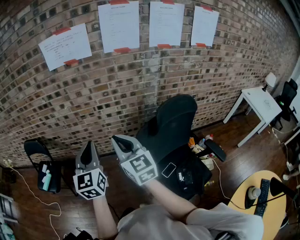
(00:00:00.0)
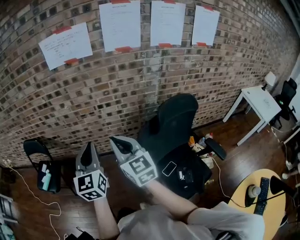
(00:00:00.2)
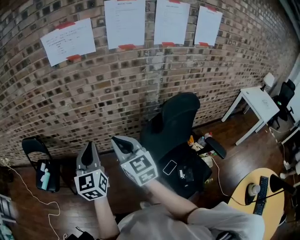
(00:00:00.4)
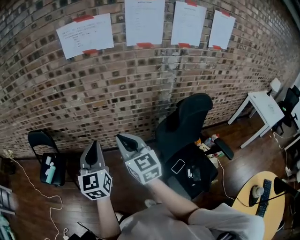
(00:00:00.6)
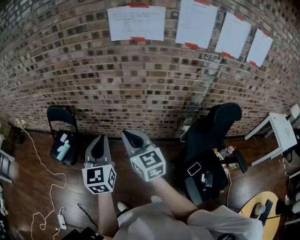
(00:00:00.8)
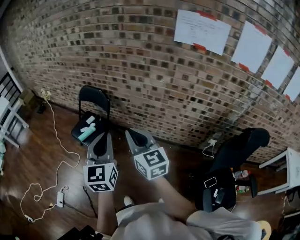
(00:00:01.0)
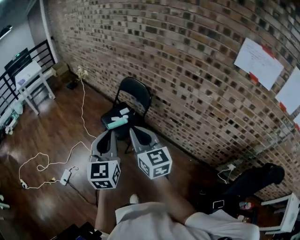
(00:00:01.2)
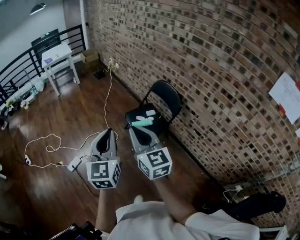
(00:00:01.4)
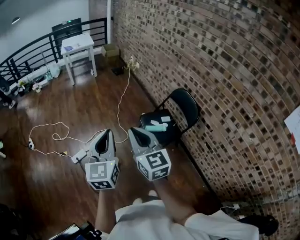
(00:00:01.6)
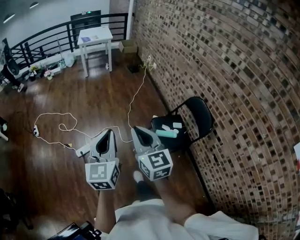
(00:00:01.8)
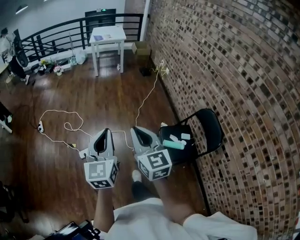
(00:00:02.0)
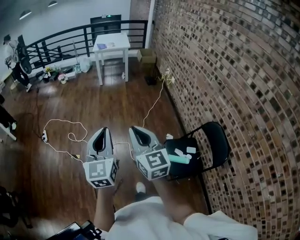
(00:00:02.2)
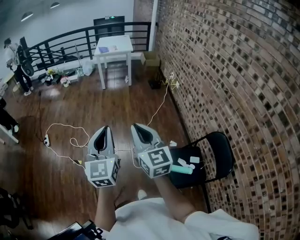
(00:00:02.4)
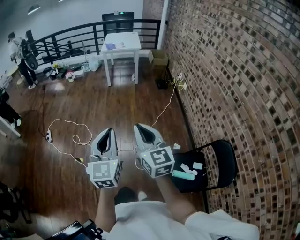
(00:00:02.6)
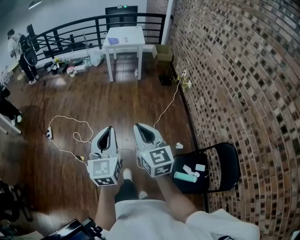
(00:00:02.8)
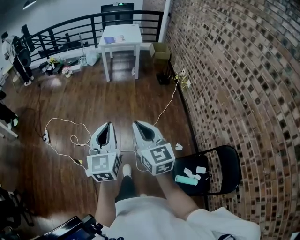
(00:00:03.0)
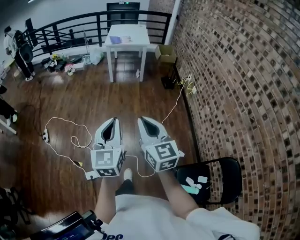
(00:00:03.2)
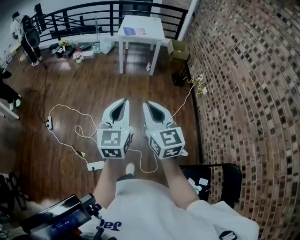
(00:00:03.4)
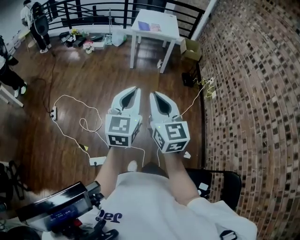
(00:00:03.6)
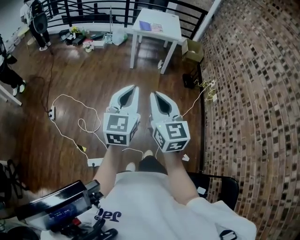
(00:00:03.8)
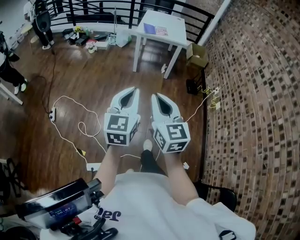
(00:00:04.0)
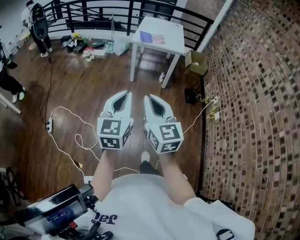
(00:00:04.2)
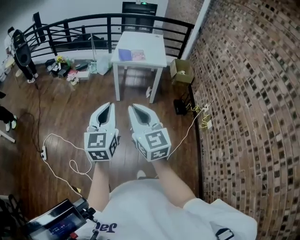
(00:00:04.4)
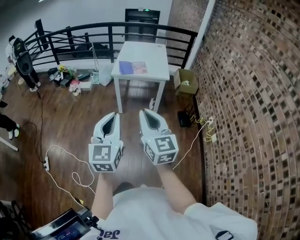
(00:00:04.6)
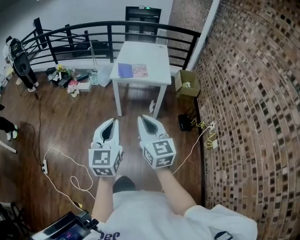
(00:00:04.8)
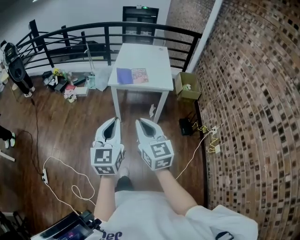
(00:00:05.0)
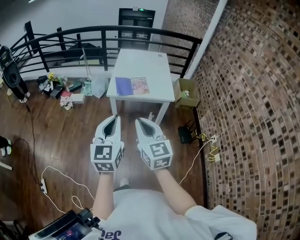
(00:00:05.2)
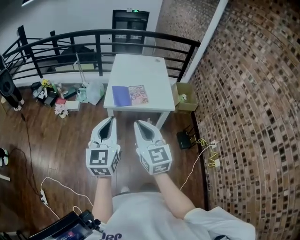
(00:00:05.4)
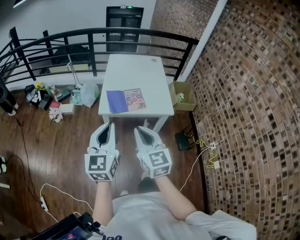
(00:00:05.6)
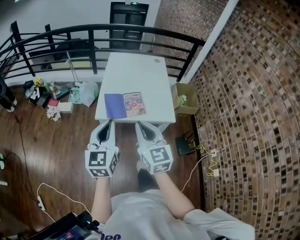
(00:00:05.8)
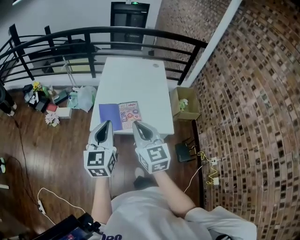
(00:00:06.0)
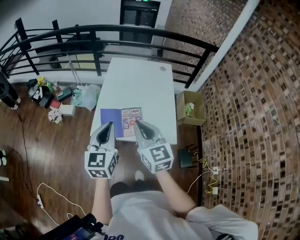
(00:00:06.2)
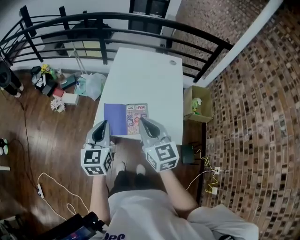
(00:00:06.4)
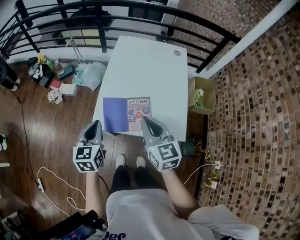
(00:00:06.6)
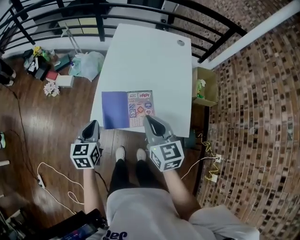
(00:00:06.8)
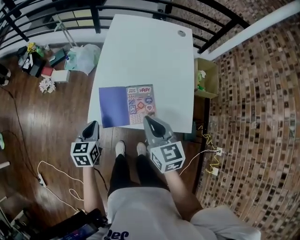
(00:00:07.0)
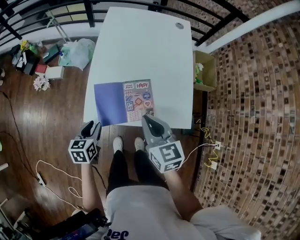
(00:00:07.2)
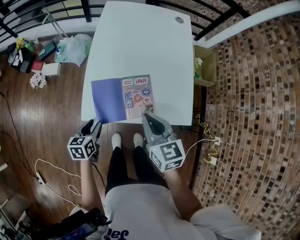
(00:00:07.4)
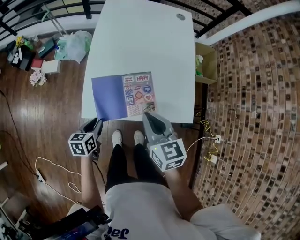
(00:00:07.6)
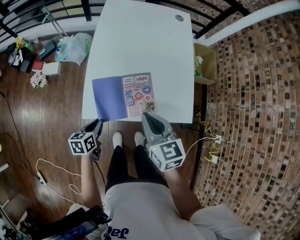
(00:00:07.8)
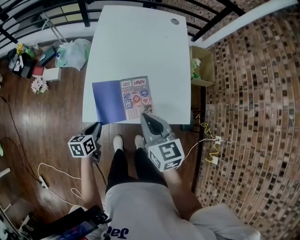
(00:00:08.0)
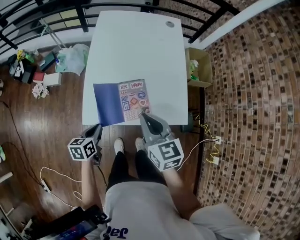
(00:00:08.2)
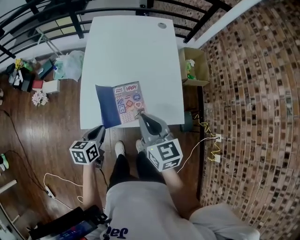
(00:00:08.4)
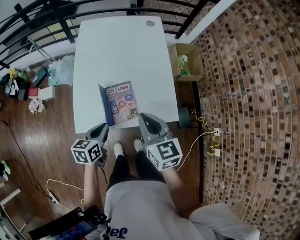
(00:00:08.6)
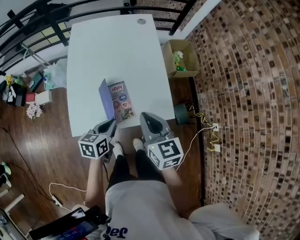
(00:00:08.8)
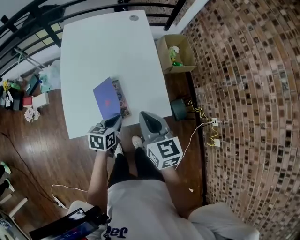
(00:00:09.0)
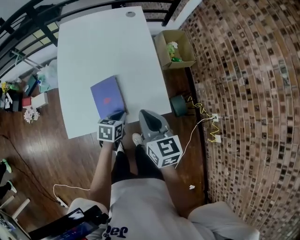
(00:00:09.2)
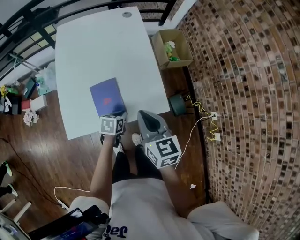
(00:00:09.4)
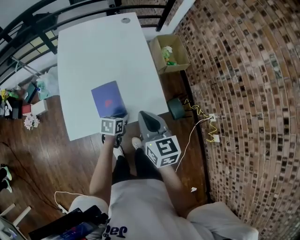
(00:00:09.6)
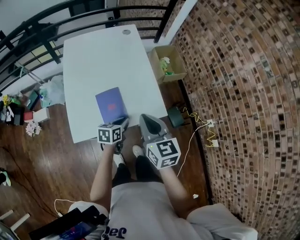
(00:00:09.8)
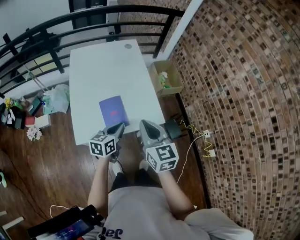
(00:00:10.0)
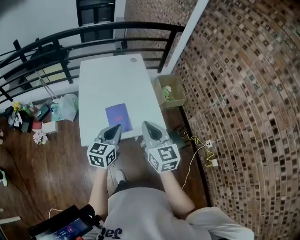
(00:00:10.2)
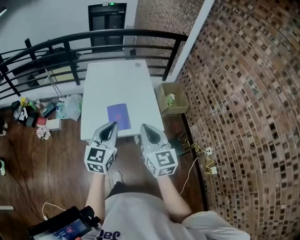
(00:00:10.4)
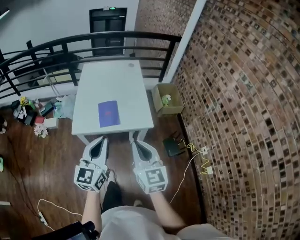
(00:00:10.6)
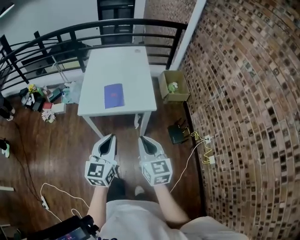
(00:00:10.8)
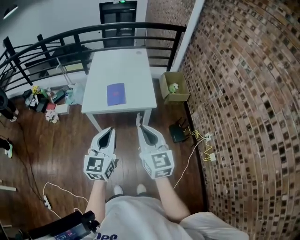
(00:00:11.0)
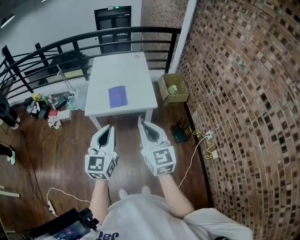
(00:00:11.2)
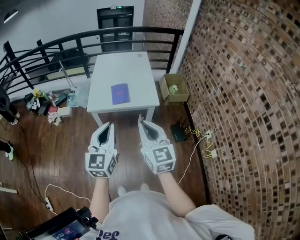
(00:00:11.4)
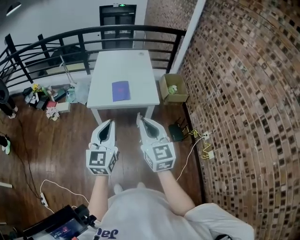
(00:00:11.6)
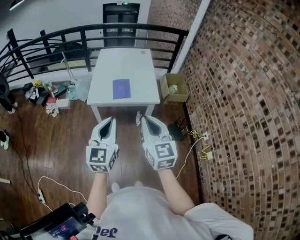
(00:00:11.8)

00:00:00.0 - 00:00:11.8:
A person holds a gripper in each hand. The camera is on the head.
00:00:00.0 - 00:00:01.4: The two grippers travel together, approximately 80 cm. The left gripper turns by some 50 degrees. The right gripper swivels some 60 degrees.
00:00:01.4 - 00:00:03.0: Both grippers are carried roughly 60 cm. The right gripper rotates about 30 degrees, while the left gripper turns by roughly 30 degrees.
00:00:03.0 - 00:00:04.4: The two grippers travel together, forward, some 60 cm.
00:00:04.4 - 00:00:06.0: The two grippers travel together, forward, approximately 70 cm.
00:00:06.0 - 00:00:07.4: The right gripper is displaced downward and forward by about 20 cm, and changes its angle by some 20 degrees; the left gripper heads downward, covering approximately 35 cm, angles its fingers downward, by approximately 40 degrees, and opens its fingers.
00:00:07.4 - 00:00:08.8: The right gripper goes approximately 10 cm to the right. Meanwhile the left gripper moves to the right and upward, some 20 cm, swivels some 20 degrees, and closes up.
00:00:08.8 - 00:00:10.4: The left gripper shifts roughly 25 cm upward and backward, and changes its angle by about 40 degrees. Meanwhile the right gripper is displaced backward and upward by some 20 cm, and rotates approximately 20 degrees.
00:00:10.4 - 00:00:11.8: Both grippers move backward, some 25 cm.

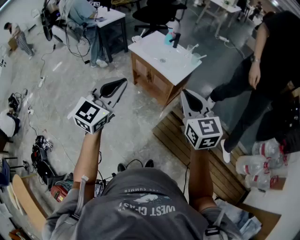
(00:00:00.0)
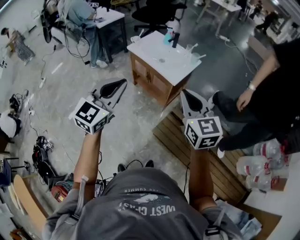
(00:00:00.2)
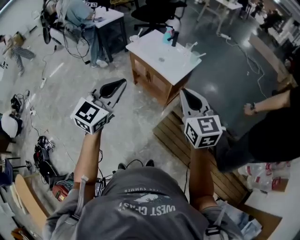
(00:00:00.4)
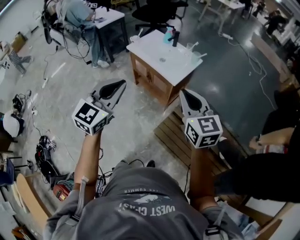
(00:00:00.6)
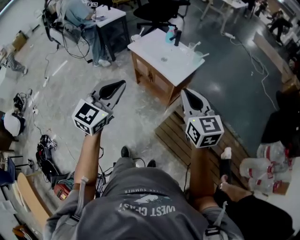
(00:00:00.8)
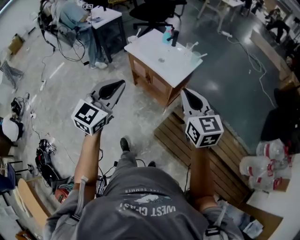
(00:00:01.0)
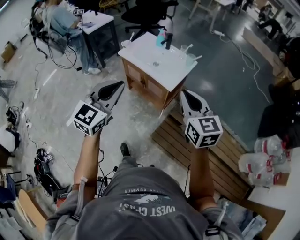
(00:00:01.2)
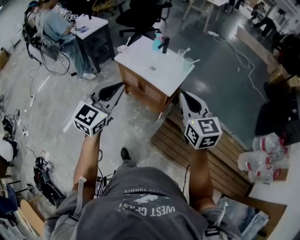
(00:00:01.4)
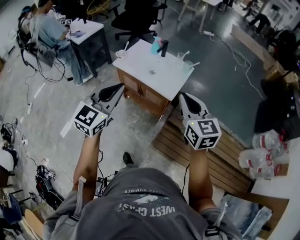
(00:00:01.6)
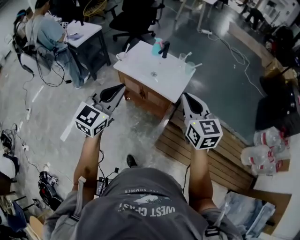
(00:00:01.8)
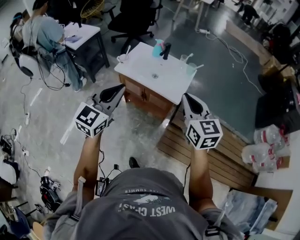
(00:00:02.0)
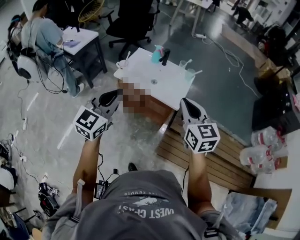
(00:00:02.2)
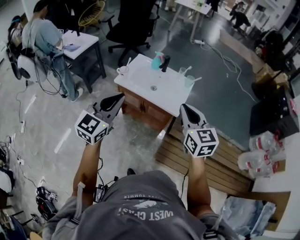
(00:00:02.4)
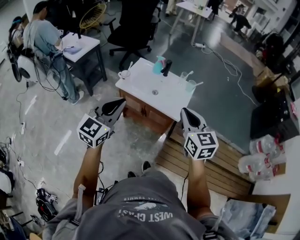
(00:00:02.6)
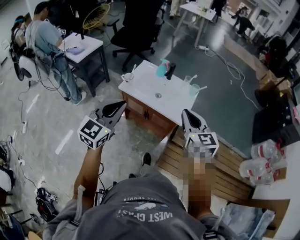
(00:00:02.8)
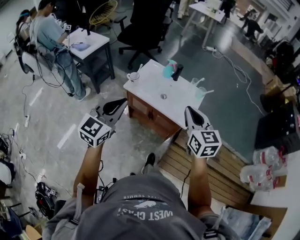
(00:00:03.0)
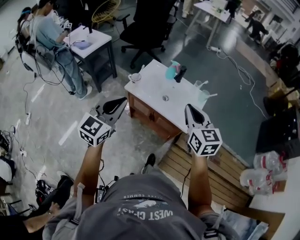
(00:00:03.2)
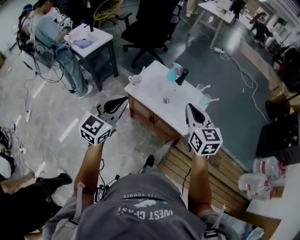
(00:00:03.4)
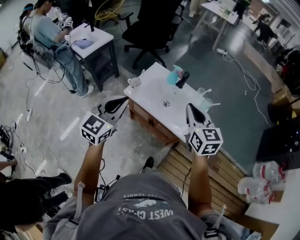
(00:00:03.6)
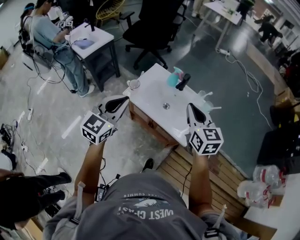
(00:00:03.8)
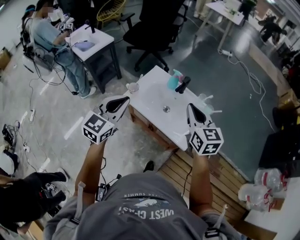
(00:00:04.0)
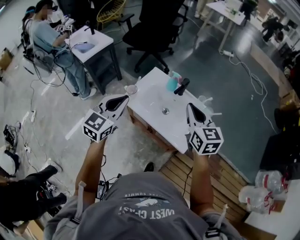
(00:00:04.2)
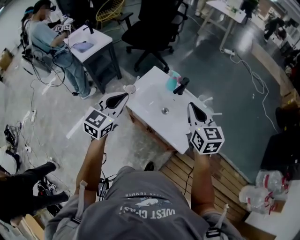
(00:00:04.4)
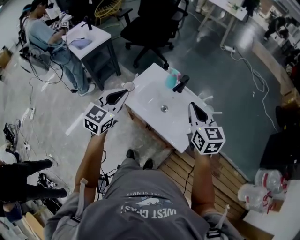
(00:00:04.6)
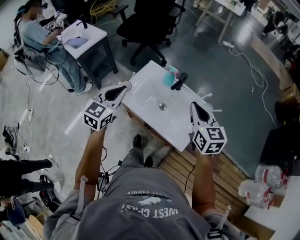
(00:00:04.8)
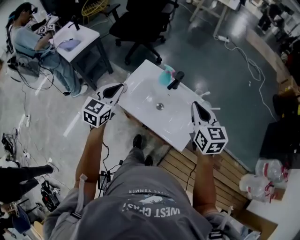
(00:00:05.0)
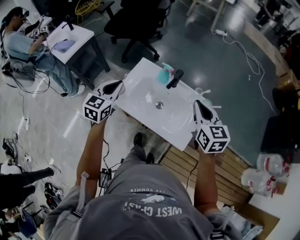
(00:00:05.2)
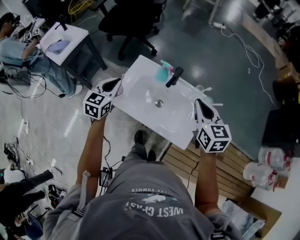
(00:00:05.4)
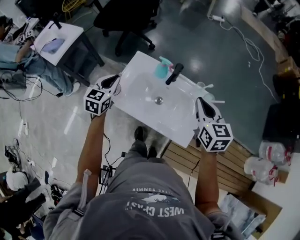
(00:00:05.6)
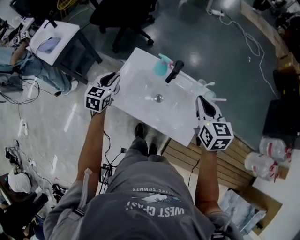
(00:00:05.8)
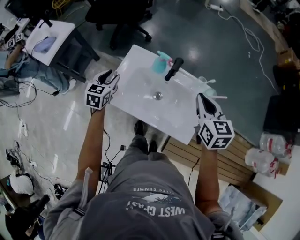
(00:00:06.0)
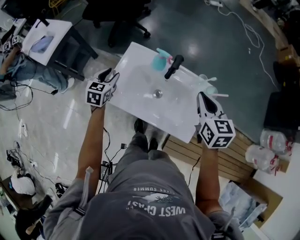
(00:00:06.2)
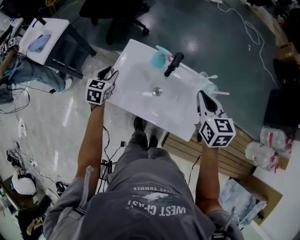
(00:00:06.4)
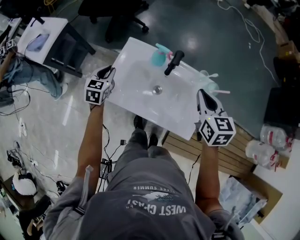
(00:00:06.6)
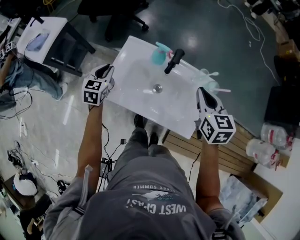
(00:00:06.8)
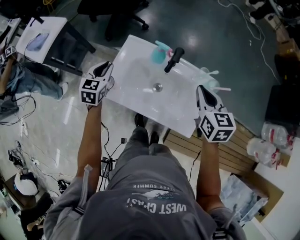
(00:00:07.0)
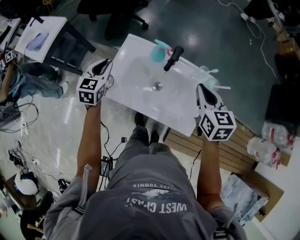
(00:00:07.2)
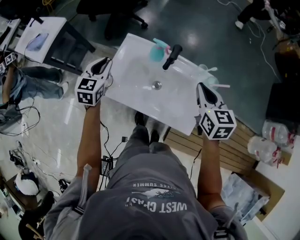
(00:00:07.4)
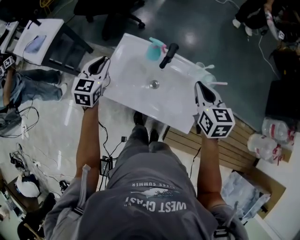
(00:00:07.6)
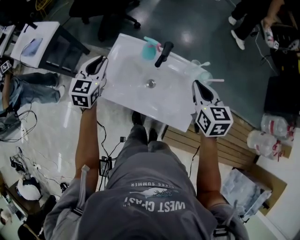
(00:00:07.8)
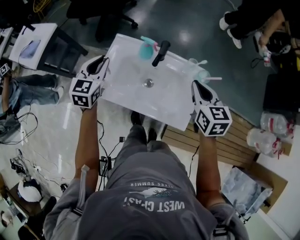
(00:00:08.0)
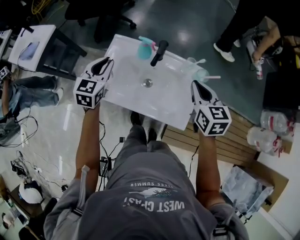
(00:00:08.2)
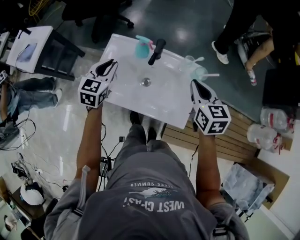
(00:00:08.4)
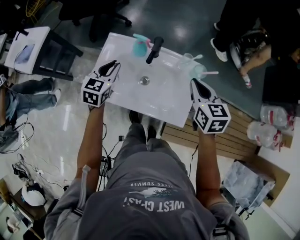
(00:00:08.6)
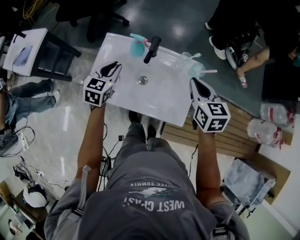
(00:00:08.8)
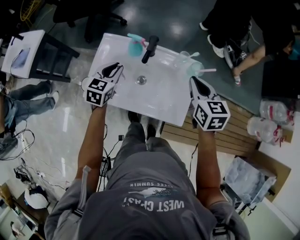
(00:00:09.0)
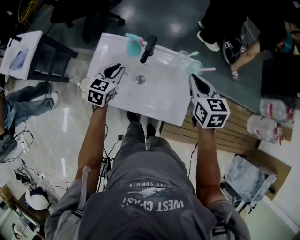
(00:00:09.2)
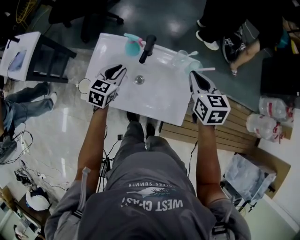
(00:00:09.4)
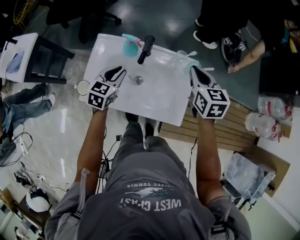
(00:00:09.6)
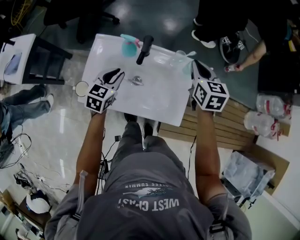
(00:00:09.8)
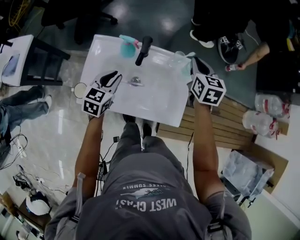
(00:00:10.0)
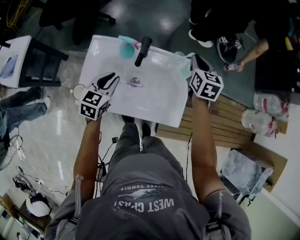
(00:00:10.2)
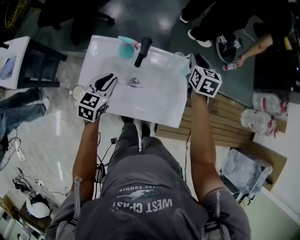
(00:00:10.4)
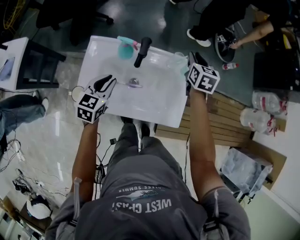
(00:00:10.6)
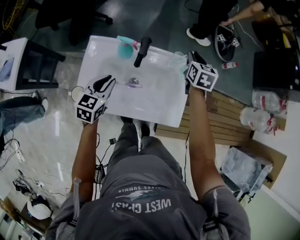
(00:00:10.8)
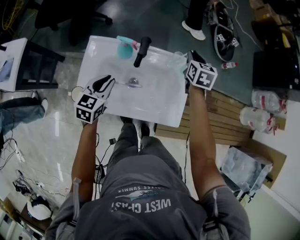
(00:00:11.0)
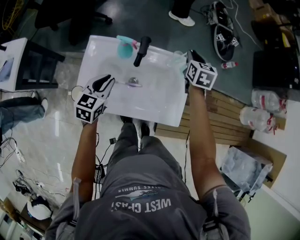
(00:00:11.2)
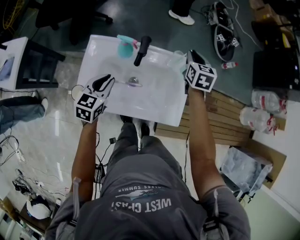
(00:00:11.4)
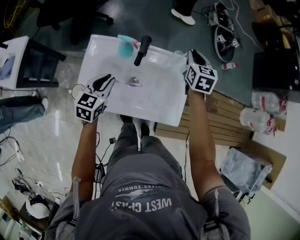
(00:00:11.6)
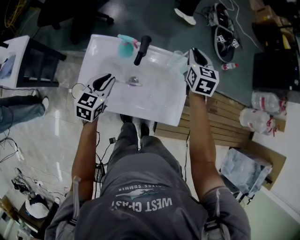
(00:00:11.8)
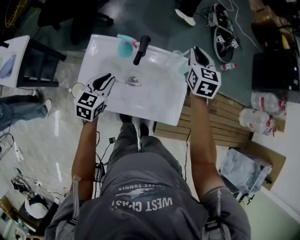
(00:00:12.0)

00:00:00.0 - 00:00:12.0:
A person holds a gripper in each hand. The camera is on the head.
00:00:00.0 - 00:00:01.6: Both grippers travel together forward, some 15 cm.
00:00:01.6 - 00:00:03.0: Both grippers travel together to the left and forward, about 20 cm.
00:00:03.0 - 00:00:04.4: The grippers both shift forward by some 20 cm.
00:00:04.4 - 00:00:06.0: The right gripper is displaced forward and downward by some 15 cm, and turns by roughly 20 degrees; the left gripper shifts roughly 30 cm forward and downward, rotates roughly 20 degrees, and opens its fingers.
00:00:06.0 - 00:00:07.6: The left gripper travels upward by about 5 cm, and closes its fingers.
00:00:07.6 - 00:00:09.0: The left gripper travels to the right and downward by about 15 cm; the right gripper is displaced to the right by some 5 cm.
00:00:09.0 - 00:00:10.4: The right gripper goes about 15 cm forward and downward.
00:00:10.4 - 00:00:12.0: The right gripper travels upward by roughly 5 cm.
